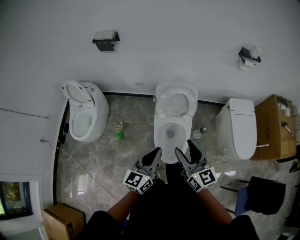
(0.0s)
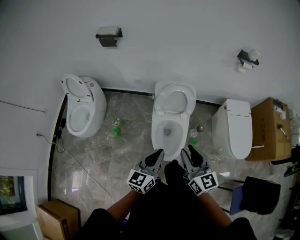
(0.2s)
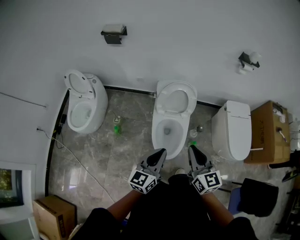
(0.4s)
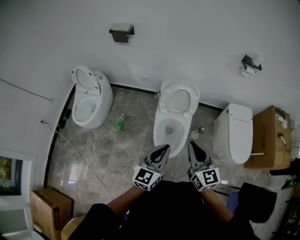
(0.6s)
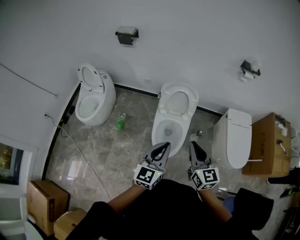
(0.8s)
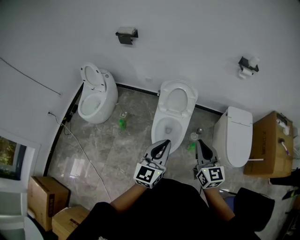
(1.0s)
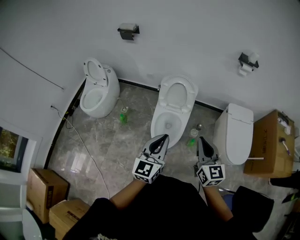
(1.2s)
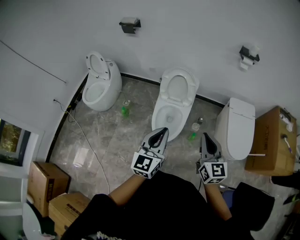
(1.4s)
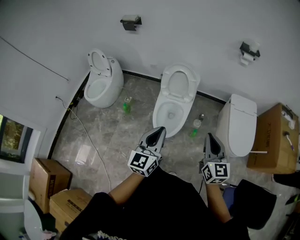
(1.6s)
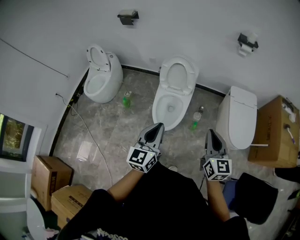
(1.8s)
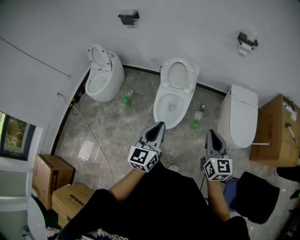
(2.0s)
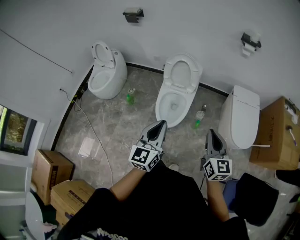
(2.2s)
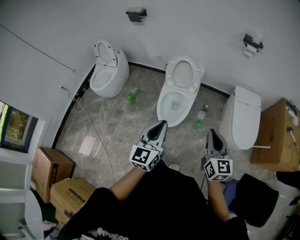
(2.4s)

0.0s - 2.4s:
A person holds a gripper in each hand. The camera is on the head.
0.0s - 1.2s: The left gripper is displaced backward, to the right and upward by some 25 cm. The right gripper is displaced to the right and backward by roughly 25 cm, and closes its fingers.
1.2s - 2.4s: The right gripper shifts roughly 15 cm backward and to the right, while the left gripper shifts approximately 10 cm backward.

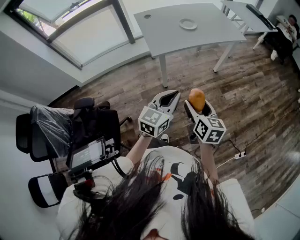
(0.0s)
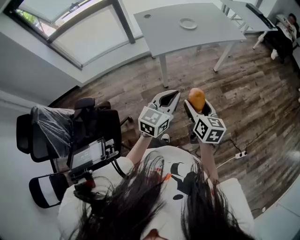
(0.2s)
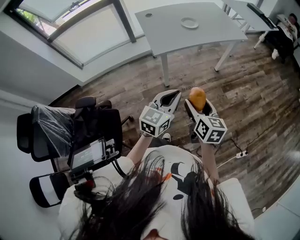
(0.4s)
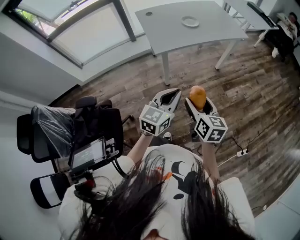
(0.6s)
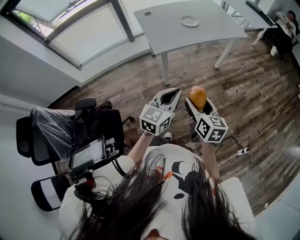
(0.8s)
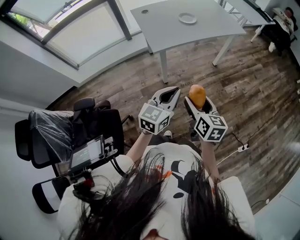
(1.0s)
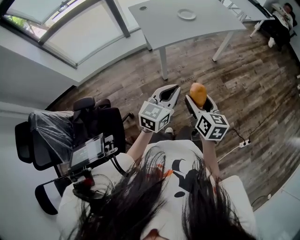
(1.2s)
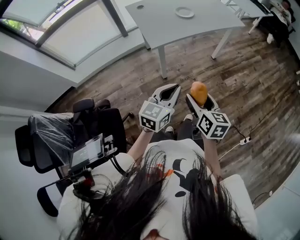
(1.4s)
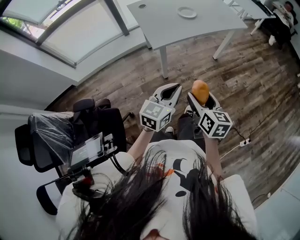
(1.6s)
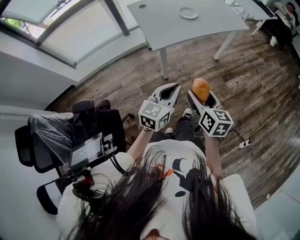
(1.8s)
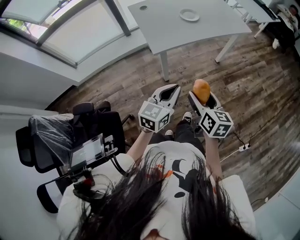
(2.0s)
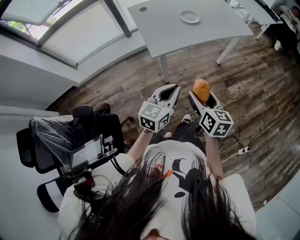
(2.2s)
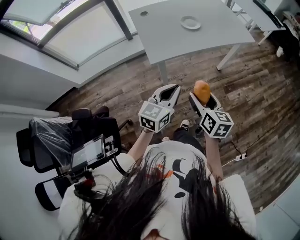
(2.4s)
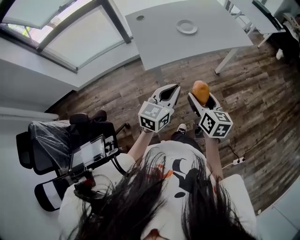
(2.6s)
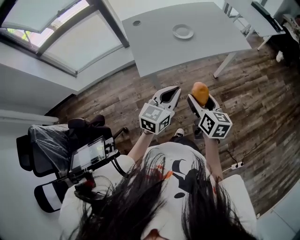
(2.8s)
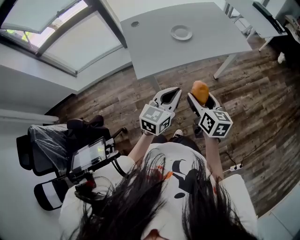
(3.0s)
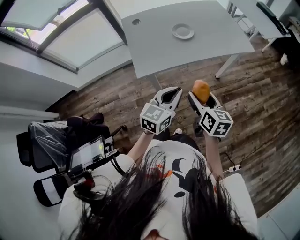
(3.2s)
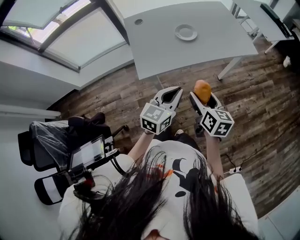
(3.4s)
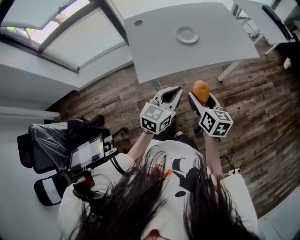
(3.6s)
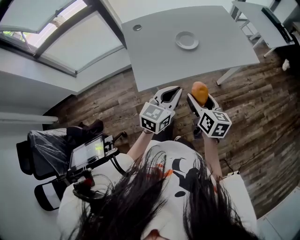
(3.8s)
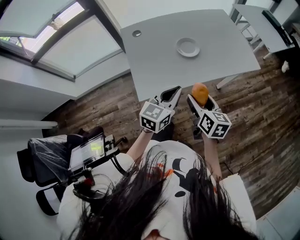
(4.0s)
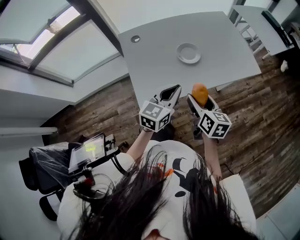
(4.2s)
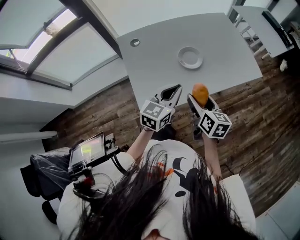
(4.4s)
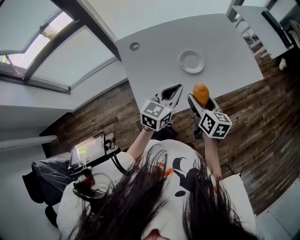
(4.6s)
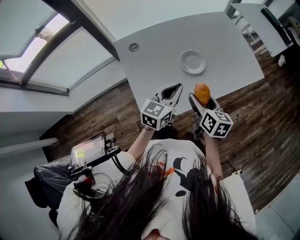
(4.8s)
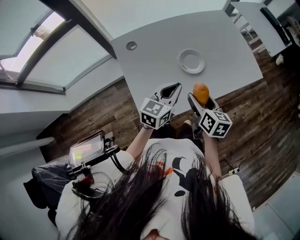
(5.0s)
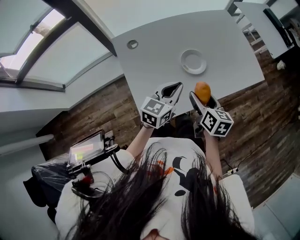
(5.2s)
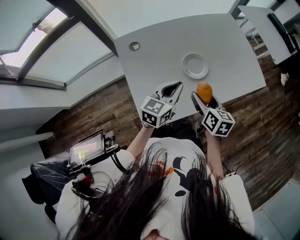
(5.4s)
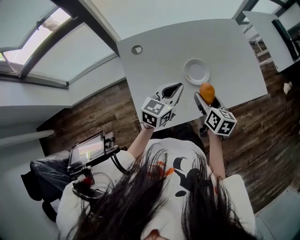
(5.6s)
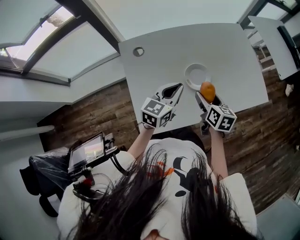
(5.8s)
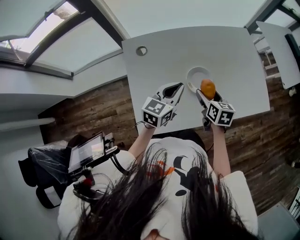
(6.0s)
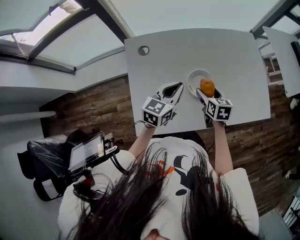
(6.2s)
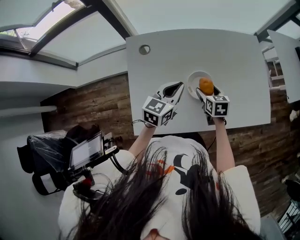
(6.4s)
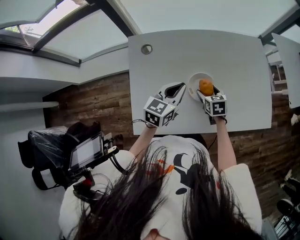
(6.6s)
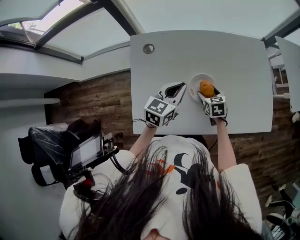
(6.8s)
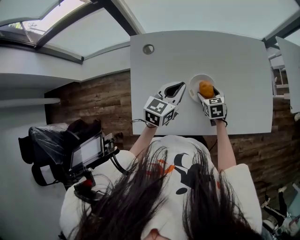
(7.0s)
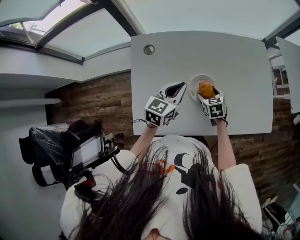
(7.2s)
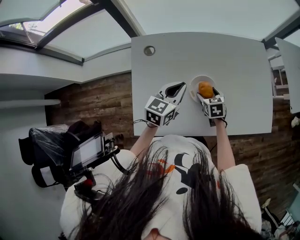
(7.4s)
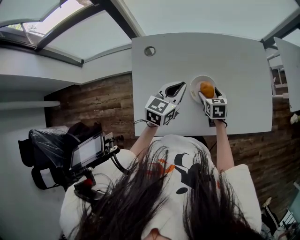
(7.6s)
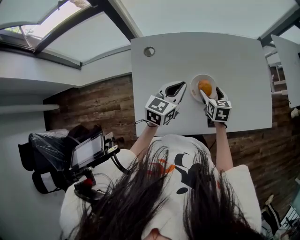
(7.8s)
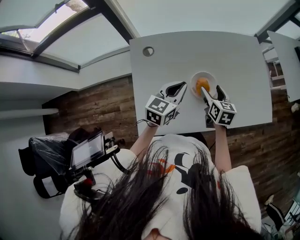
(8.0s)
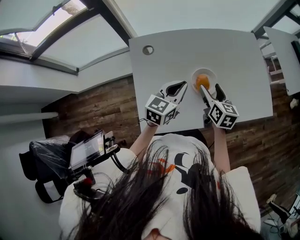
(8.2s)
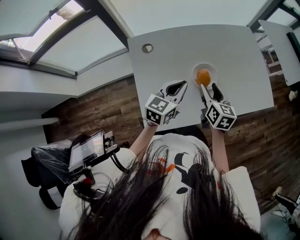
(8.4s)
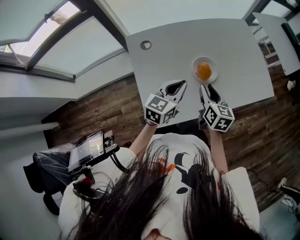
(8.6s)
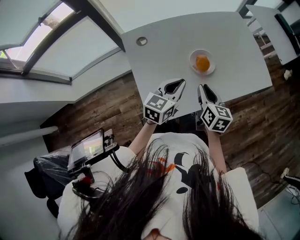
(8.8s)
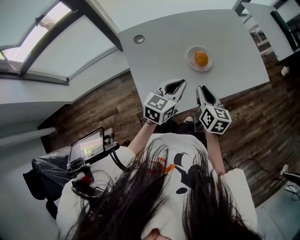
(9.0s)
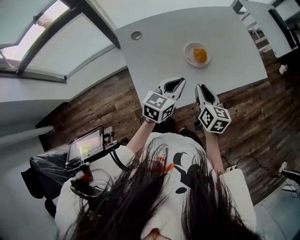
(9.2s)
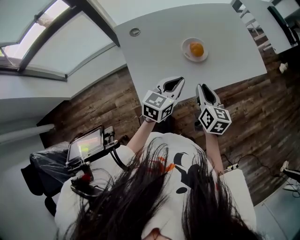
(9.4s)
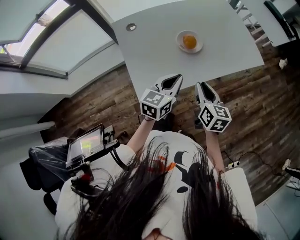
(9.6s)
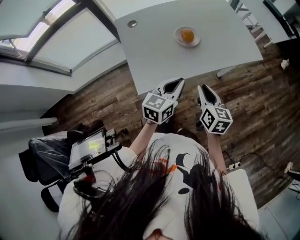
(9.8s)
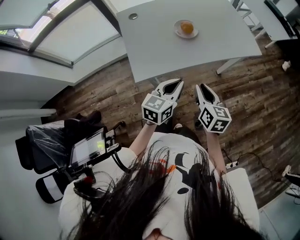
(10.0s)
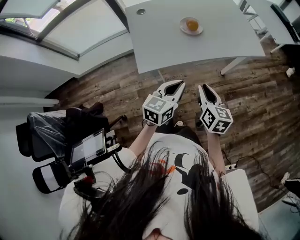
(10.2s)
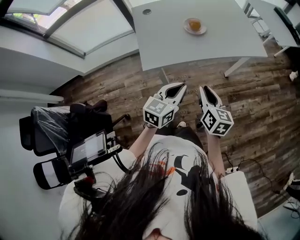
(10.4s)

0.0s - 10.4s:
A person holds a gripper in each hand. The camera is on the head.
0.0s - 1.4s: The left gripper changes place by roughly 5 cm.
1.4s - 3.0s: The grippers both shift forward by some 25 cm.
3.0s - 4.4s: Both grippers travel together forward, approximately 20 cm.
4.4s - 6.0s: Both grippers move forward, about 15 cm.
6.0s - 7.4s: The right gripper goes approximately 10 cm downward, and changes its angle by some 30 degrees.
7.4s - 9.0s: The right gripper goes roughly 20 cm backward and upward, rotates approximately 40 degrees, and closes up, while the left gripper shifts some 10 cm backward.
9.0s - 10.4s: The two grippers go about 30 cm backward and to the right.

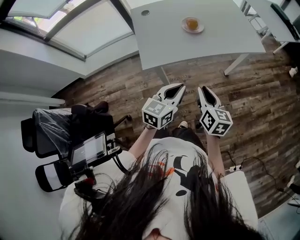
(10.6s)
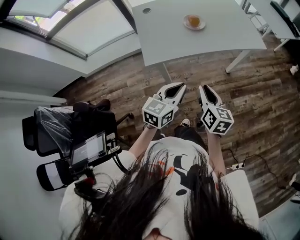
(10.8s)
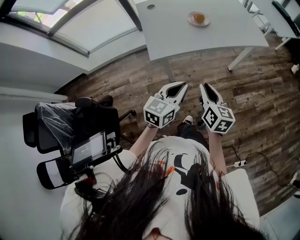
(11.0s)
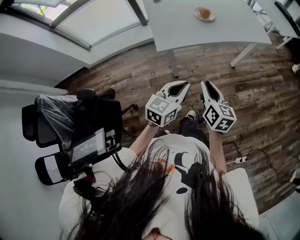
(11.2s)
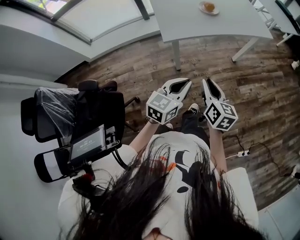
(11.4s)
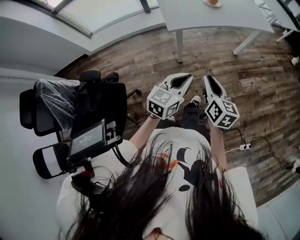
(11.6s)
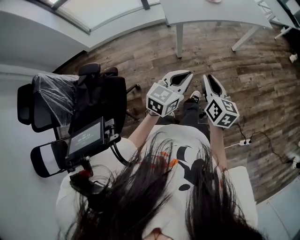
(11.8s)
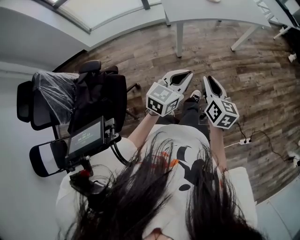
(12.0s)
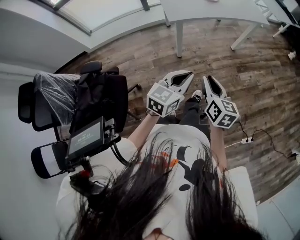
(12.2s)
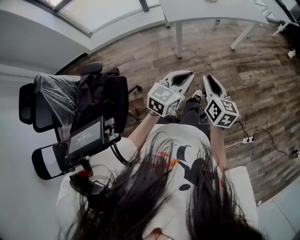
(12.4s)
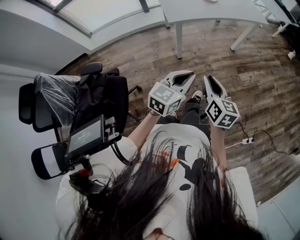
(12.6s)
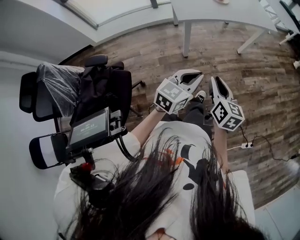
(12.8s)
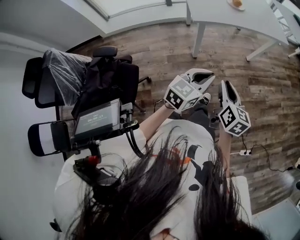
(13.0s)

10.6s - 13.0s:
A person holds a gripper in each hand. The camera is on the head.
10.6s - 11.8s: Both grippers travel together backward, some 25 cm.
11.8s - 13.0s: The grippers move only a little.

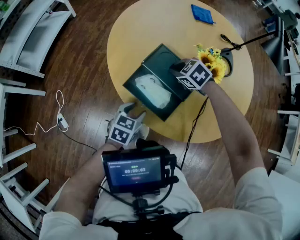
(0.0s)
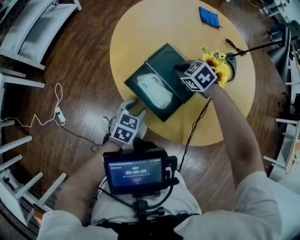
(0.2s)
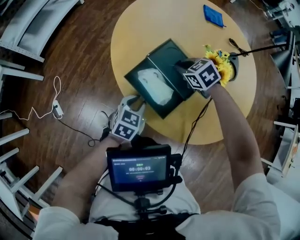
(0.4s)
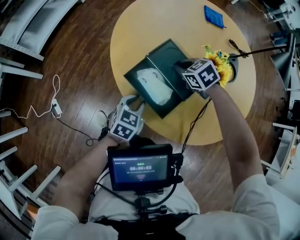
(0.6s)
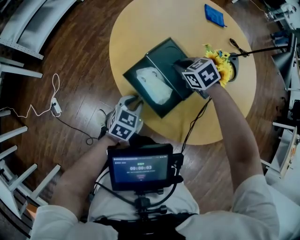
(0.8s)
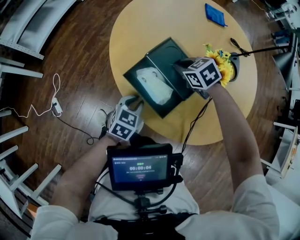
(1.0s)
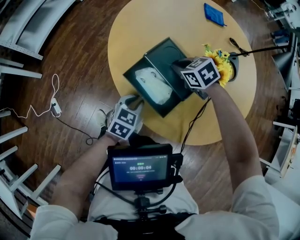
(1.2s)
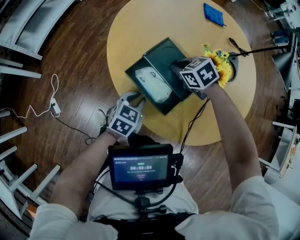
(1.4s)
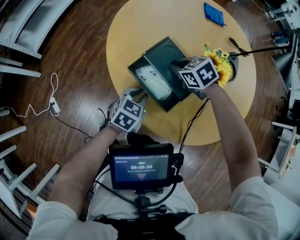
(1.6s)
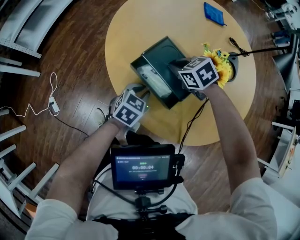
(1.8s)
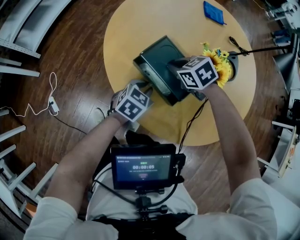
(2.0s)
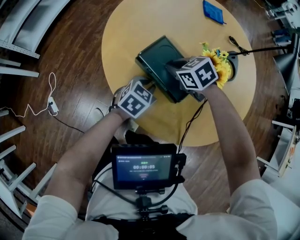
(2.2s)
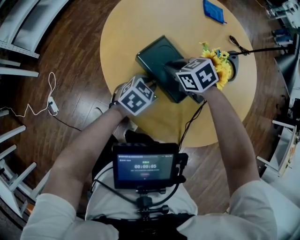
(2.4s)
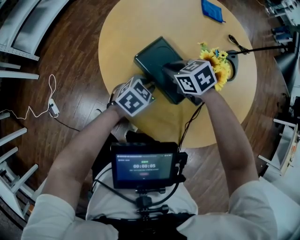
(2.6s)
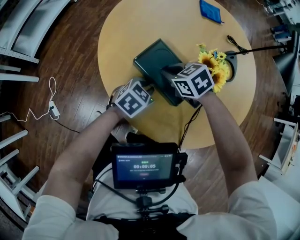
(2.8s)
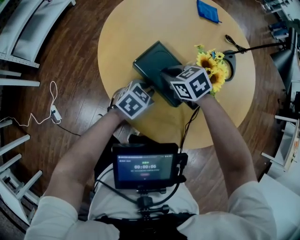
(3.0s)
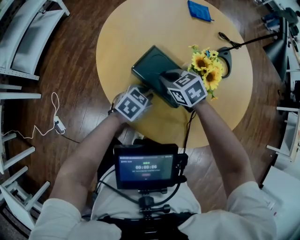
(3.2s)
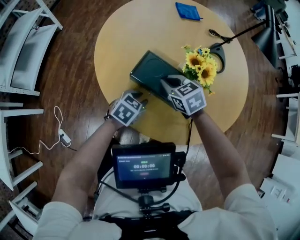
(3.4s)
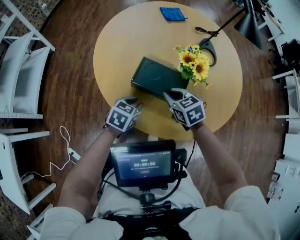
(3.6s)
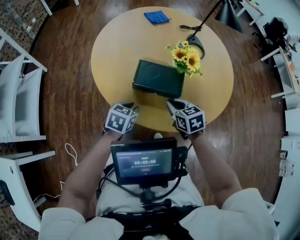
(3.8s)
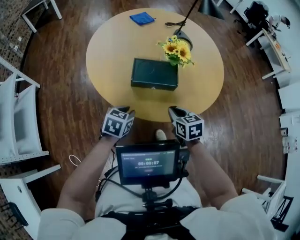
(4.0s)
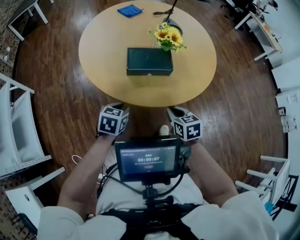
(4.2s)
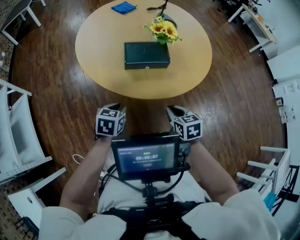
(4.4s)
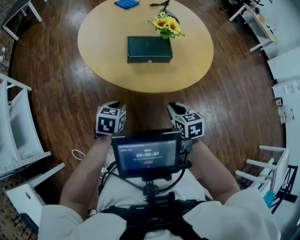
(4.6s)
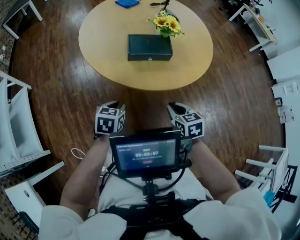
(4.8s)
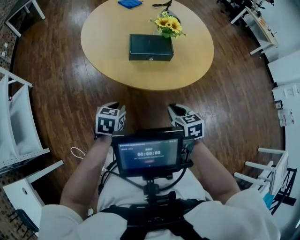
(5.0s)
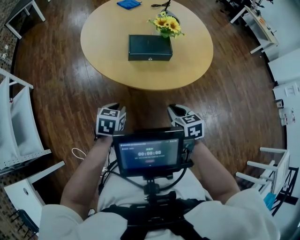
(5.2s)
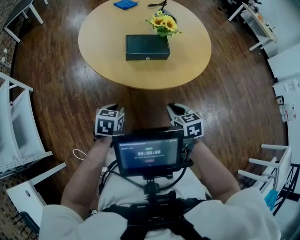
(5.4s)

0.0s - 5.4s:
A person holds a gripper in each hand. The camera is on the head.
0.0s - 1.4s: The left gripper closes up.
1.4s - 2.8s: The left gripper goes some 10 cm to the right and forward.
2.8s - 4.0s: The right gripper ends up about 20 cm from where it was, and swivels approximately 70 degrees. The left gripper moves approximately 15 cm.
4.0s - 5.4s: The two grippers go about 15 cm backward.

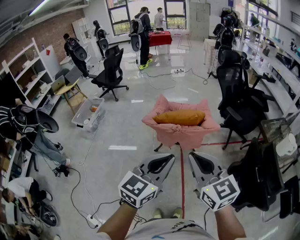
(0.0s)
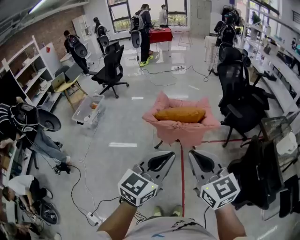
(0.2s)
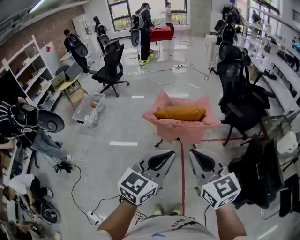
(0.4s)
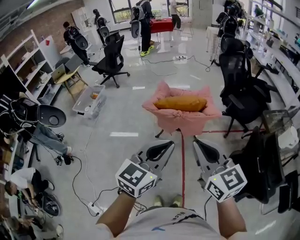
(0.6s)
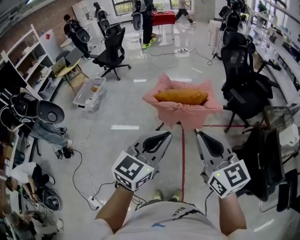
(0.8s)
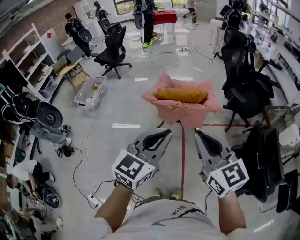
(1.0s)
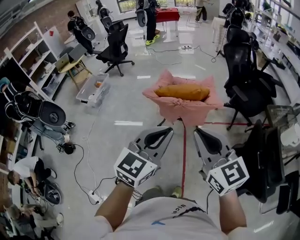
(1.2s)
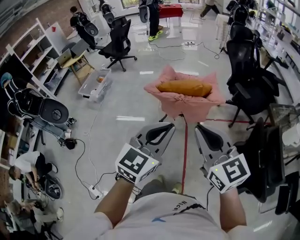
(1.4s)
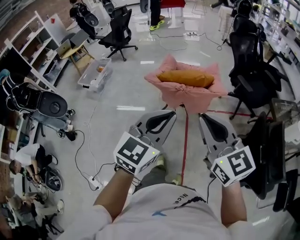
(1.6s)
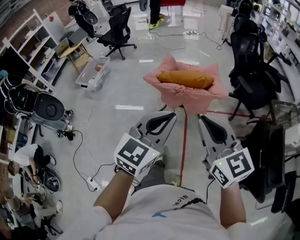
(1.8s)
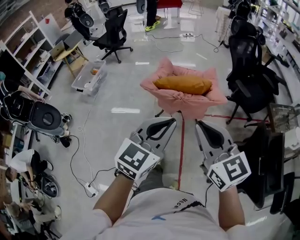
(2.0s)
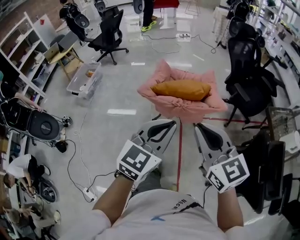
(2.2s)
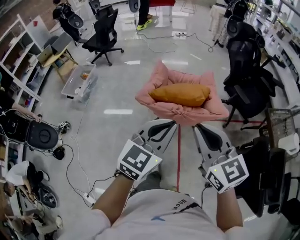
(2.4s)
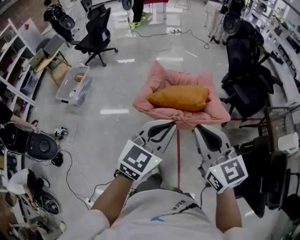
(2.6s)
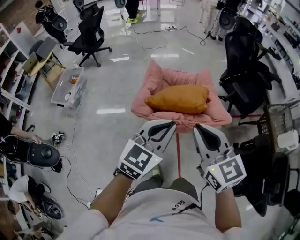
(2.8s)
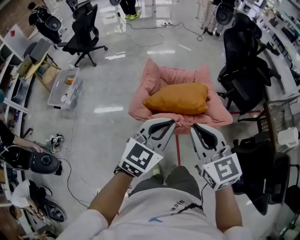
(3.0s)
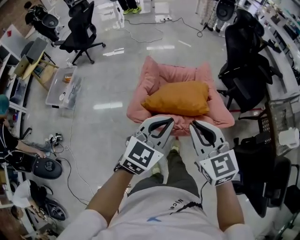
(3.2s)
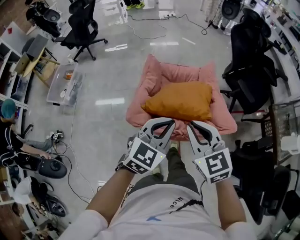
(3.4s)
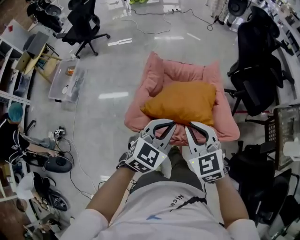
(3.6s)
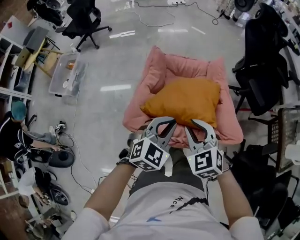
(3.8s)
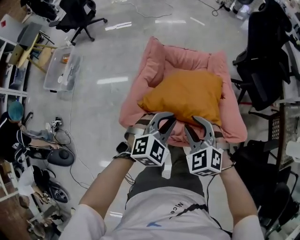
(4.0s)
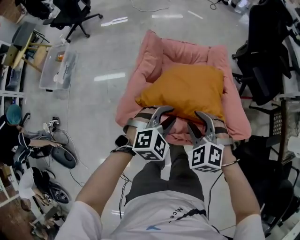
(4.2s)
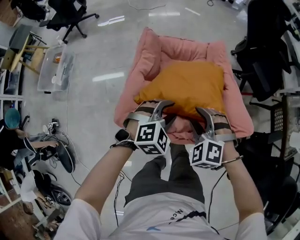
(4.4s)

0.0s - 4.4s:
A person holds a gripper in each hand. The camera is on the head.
0.0s - 1.4s: The right gripper travels to the right by approximately 5 cm.
1.4s - 3.0s: The two grippers go roughly 30 cm forward.
3.0s - 4.4s: Both grippers travel together downward and forward, some 30 cm. The right gripper points its fingers approximately 30 degrees further downward, and opens. Meanwhile the left gripper tilts its fingers roughly 30 degrees downward, and opens up.
